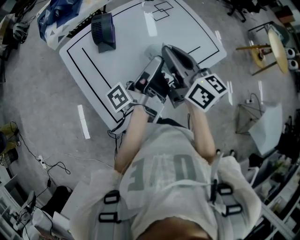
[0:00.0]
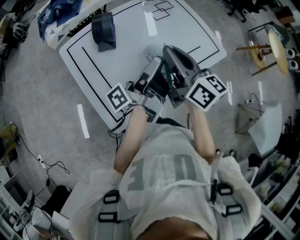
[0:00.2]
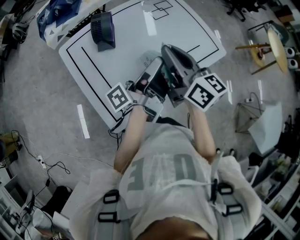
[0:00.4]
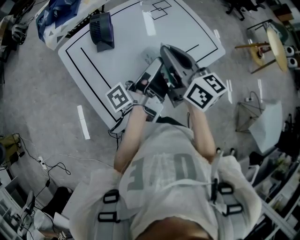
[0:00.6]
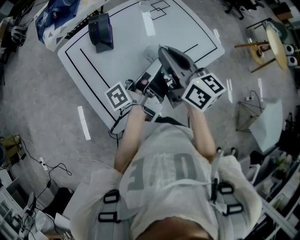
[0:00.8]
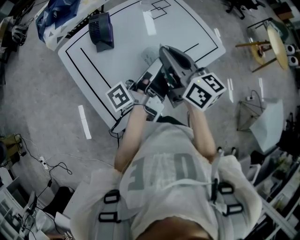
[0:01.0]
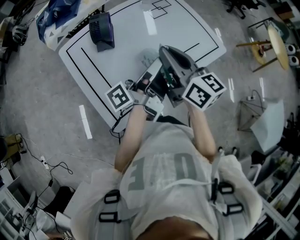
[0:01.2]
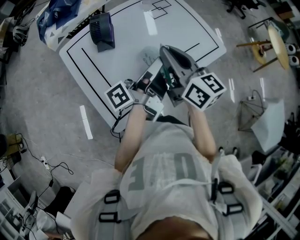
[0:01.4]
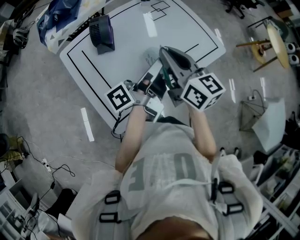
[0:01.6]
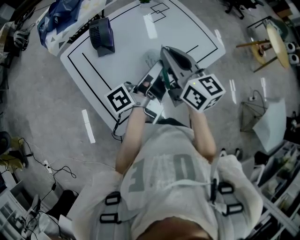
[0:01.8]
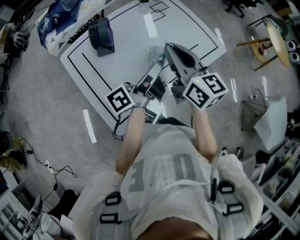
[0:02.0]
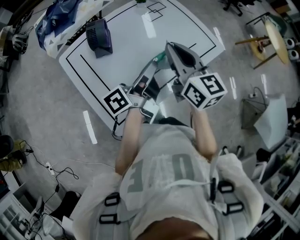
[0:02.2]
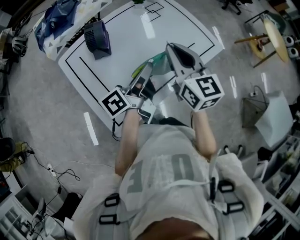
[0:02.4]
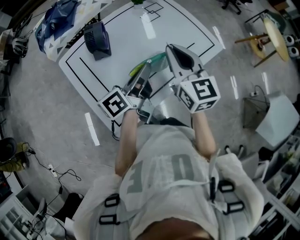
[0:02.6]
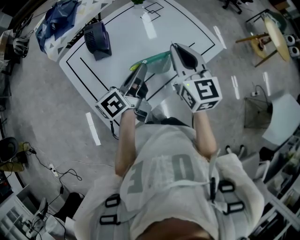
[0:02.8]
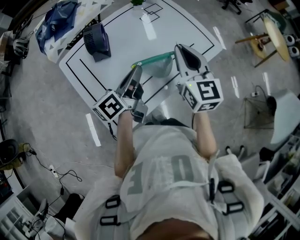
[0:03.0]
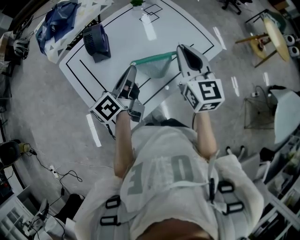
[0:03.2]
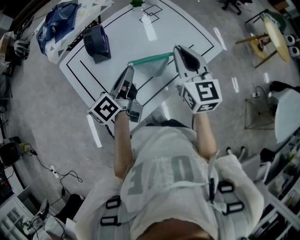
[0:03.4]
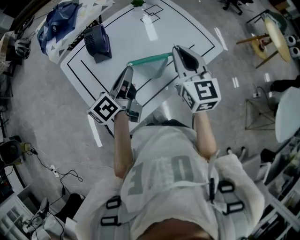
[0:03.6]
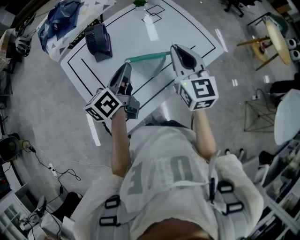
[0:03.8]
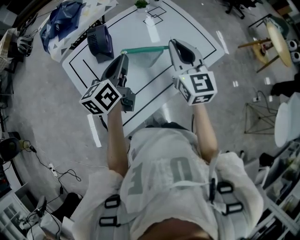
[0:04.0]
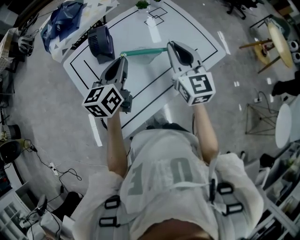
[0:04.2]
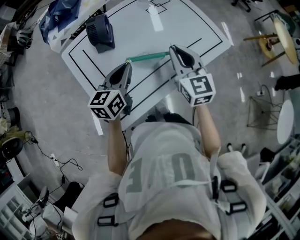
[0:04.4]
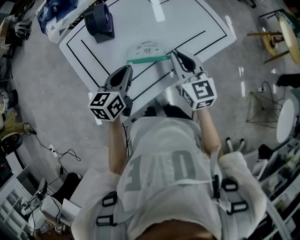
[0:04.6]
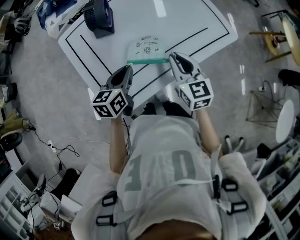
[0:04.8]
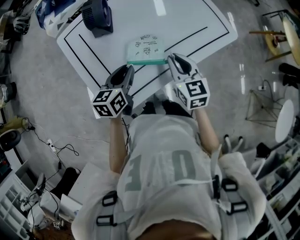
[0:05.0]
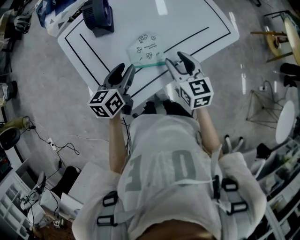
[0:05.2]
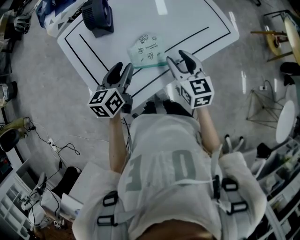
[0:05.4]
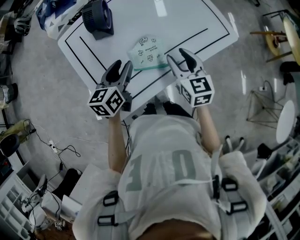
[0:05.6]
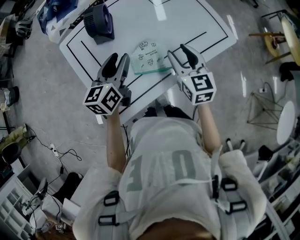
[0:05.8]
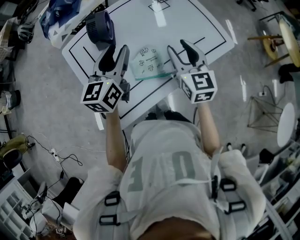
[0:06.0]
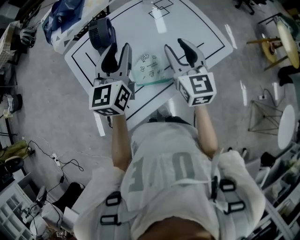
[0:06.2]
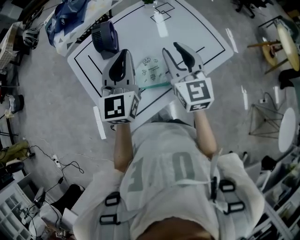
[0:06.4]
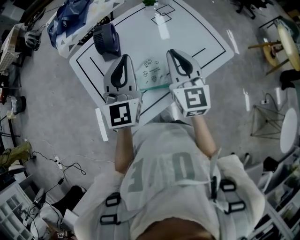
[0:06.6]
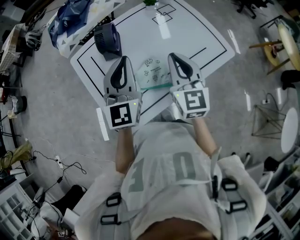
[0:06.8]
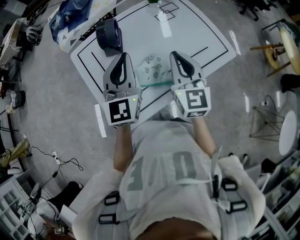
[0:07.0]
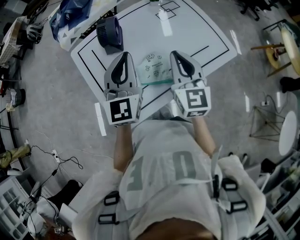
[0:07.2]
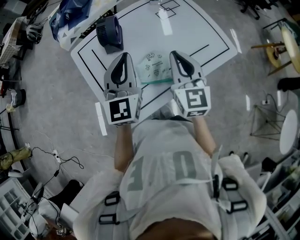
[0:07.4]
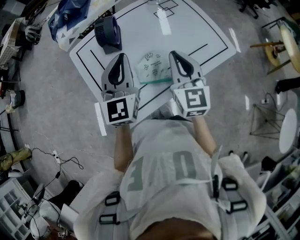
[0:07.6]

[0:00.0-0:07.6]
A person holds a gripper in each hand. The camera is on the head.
0.0 to 1.6 s: The grippers move only a little.
1.6 to 3.0 s: The left gripper moves roughly 5 cm, and swivels about 30 degrees; the right gripper goes approximately 10 cm to the right, and swivels roughly 30 degrees.
3.0 to 4.6 s: The grippers both shift downward by some 10 cm. The left gripper rotates roughly 40 degrees.
4.6 to 6.0 s: The left gripper shifts about 15 cm upward and forward, and opens up; the right gripper is displaced forward by approximately 5 cm, moves approximately 5 cm downward and comes back, and opens.
6.0 to 7.6 s: The right gripper changes place by some 5 cm, and closes its fingers; the left gripper swivels approximately 30 degrees, and closes up.

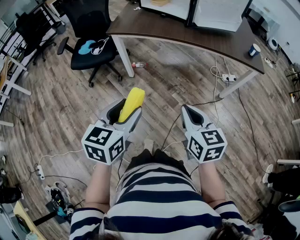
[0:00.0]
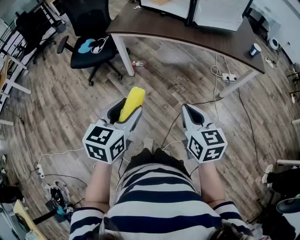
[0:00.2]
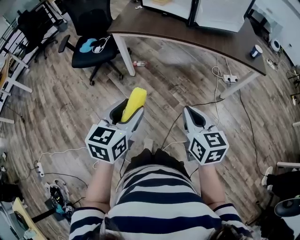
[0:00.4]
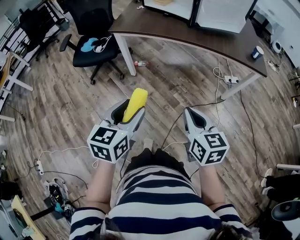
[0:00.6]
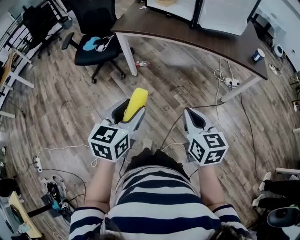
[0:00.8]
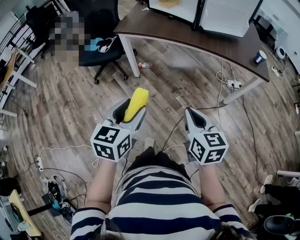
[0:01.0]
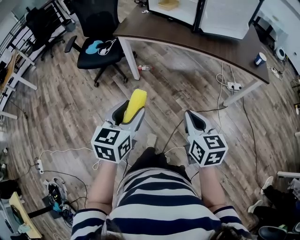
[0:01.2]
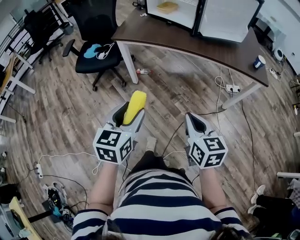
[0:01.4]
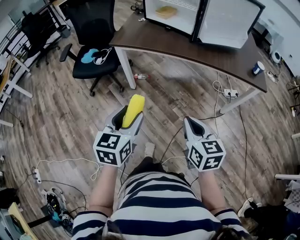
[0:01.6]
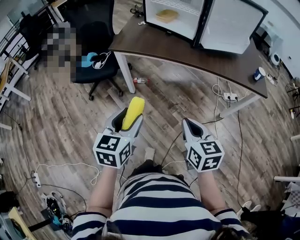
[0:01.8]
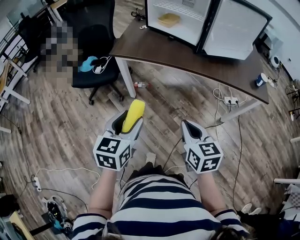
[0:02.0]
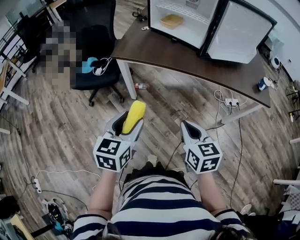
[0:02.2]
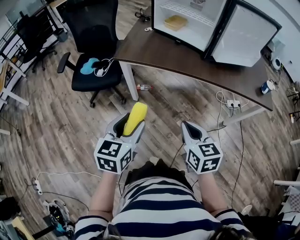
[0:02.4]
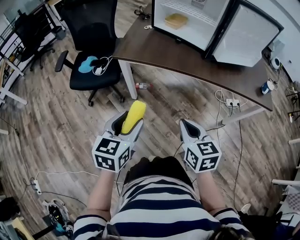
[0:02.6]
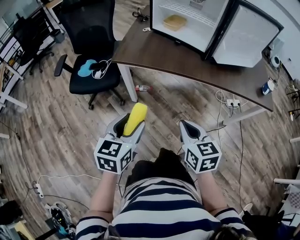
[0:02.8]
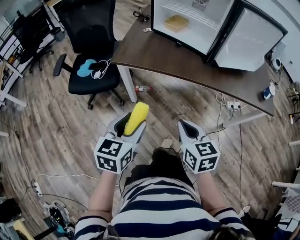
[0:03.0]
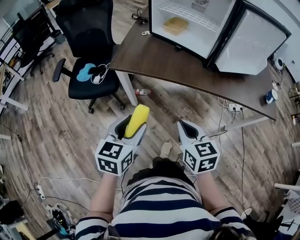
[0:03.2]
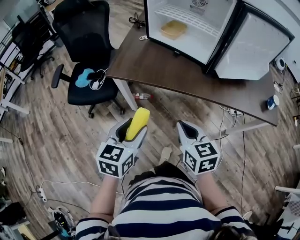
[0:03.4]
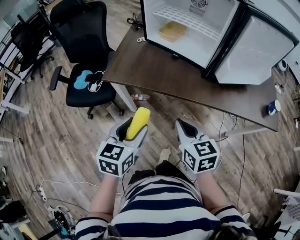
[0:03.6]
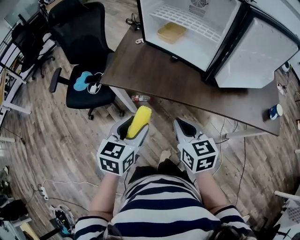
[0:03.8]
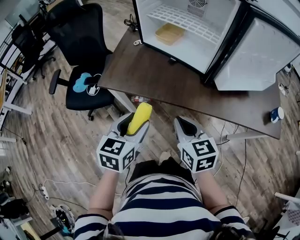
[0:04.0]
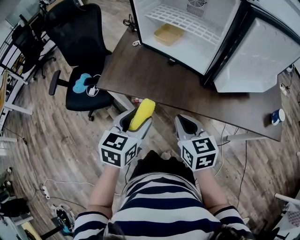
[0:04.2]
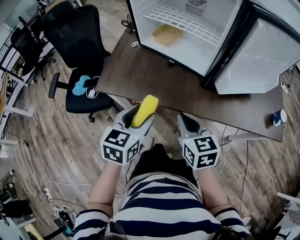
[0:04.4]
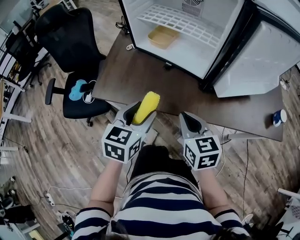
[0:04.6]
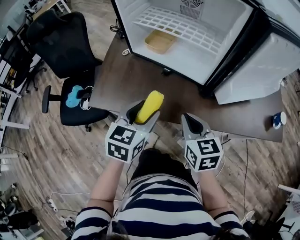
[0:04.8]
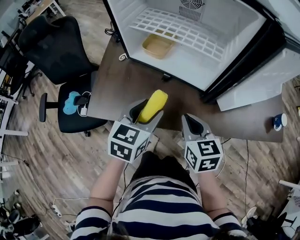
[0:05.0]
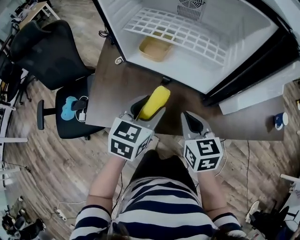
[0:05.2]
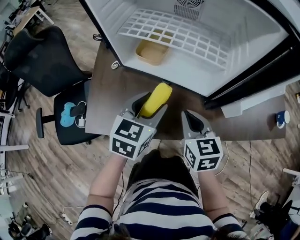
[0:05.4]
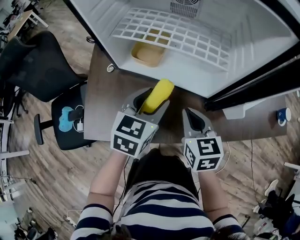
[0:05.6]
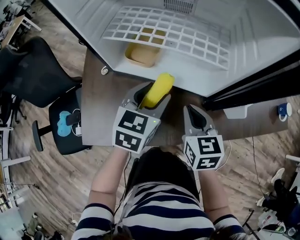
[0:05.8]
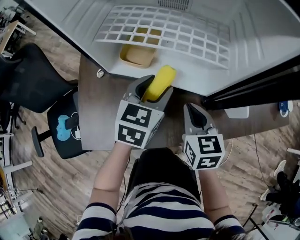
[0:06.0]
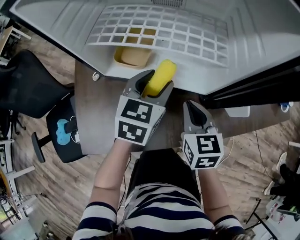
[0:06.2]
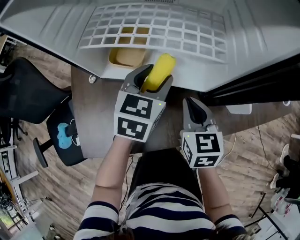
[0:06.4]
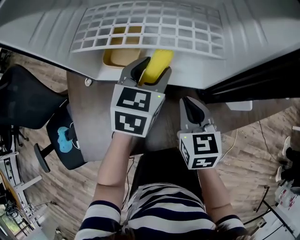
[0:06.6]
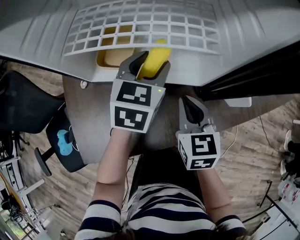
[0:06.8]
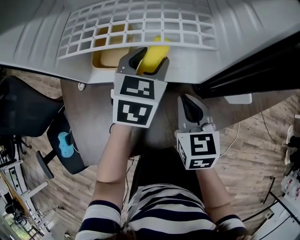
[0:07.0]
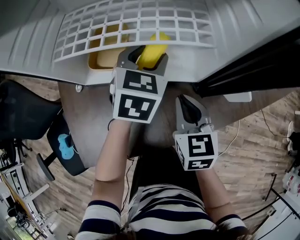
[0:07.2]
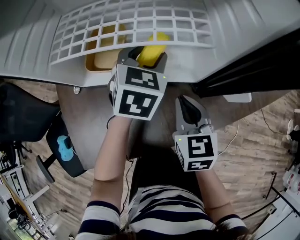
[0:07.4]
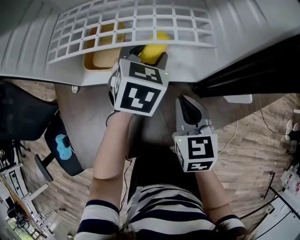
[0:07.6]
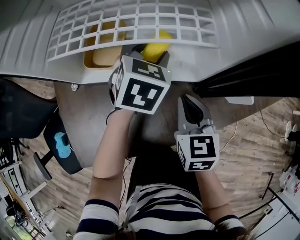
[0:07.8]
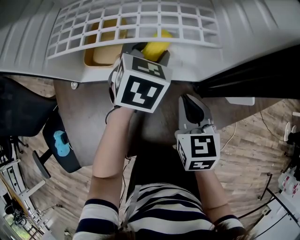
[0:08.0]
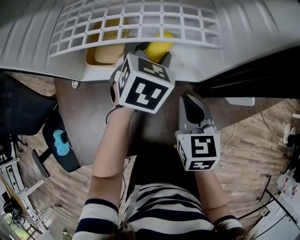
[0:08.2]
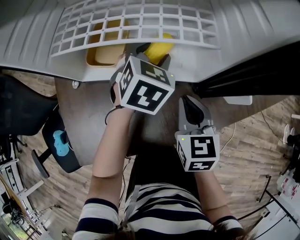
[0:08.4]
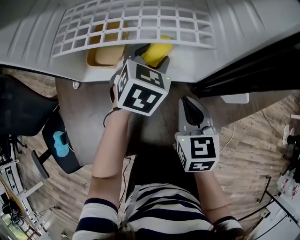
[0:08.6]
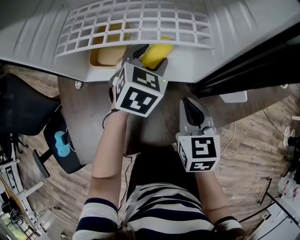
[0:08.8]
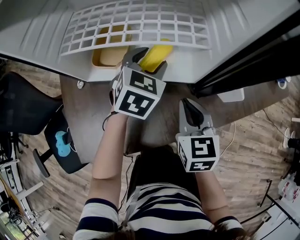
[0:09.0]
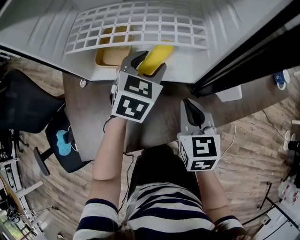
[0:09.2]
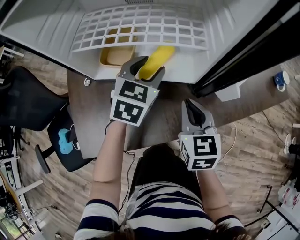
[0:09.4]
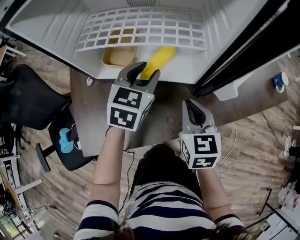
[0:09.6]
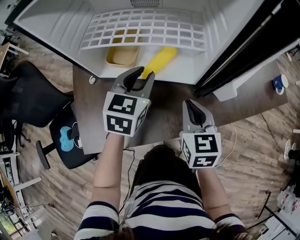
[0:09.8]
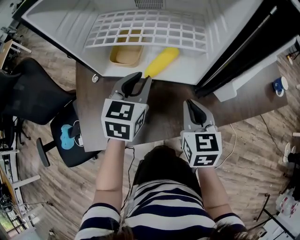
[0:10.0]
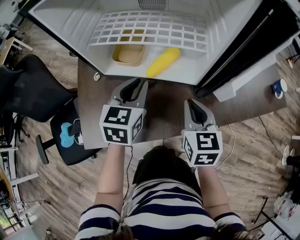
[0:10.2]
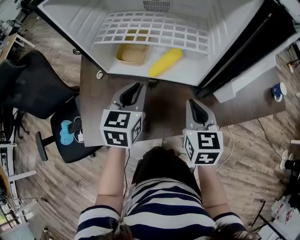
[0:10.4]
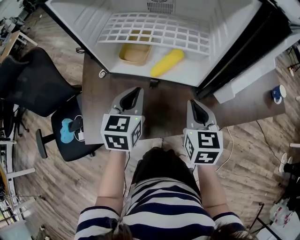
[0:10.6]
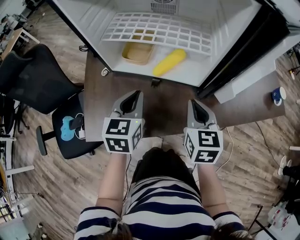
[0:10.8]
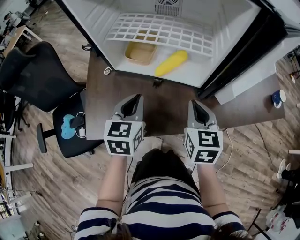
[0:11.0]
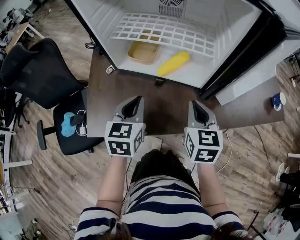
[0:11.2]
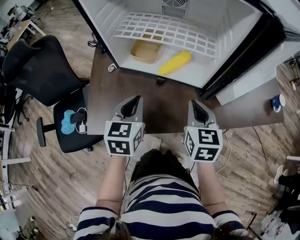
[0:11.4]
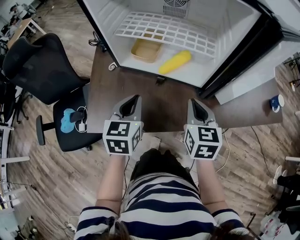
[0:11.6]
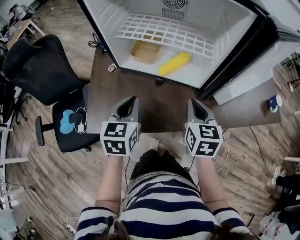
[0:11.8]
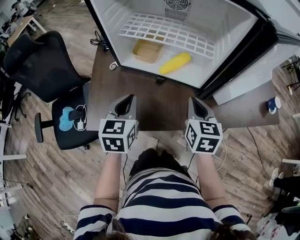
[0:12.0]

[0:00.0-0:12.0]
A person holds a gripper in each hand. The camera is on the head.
0.0 to 1.6 s: The grippers both shift forward by roughly 5 cm.
1.6 to 3.0 s: The right gripper is displaced forward and to the left by some 25 cm, while the left gripper shifts some 20 cm forward.
3.0 to 4.4 s: The right gripper travels forward by approximately 25 cm, while the left gripper is displaced forward and to the right by about 30 cm.
4.4 to 6.0 s: The grippers both shift forward by approximately 30 cm. The right gripper swivels roughly 30 degrees, while the left gripper swivels about 20 degrees.
6.0 to 7.6 s: The left gripper moves forward and to the right, roughly 10 cm.
7.6 to 9.0 s: The grippers make only small movements.
9.0 to 10.4 s: The right gripper shifts some 5 cm upward. Meanwhile the left gripper travels backward and to the left by about 15 cm, and rotates about 30 degrees.
10.4 to 12.0 s: The left gripper goes approximately 10 cm backward and to the left.

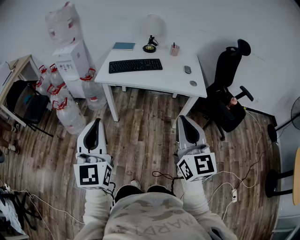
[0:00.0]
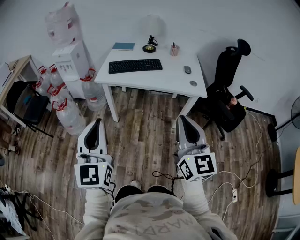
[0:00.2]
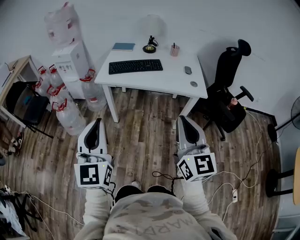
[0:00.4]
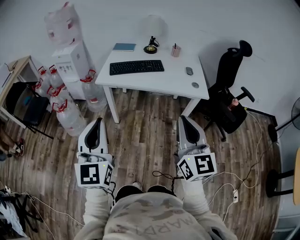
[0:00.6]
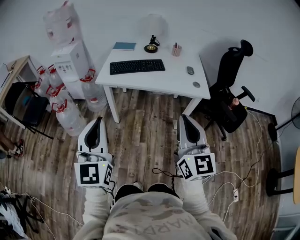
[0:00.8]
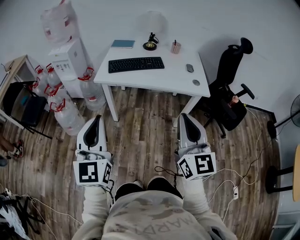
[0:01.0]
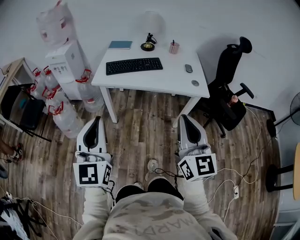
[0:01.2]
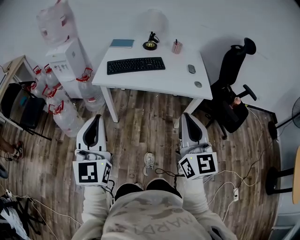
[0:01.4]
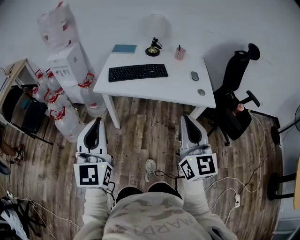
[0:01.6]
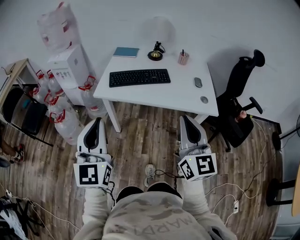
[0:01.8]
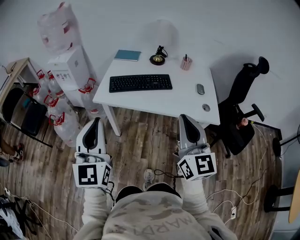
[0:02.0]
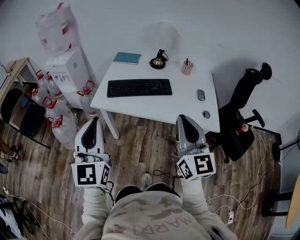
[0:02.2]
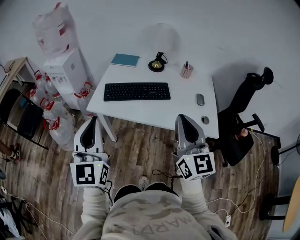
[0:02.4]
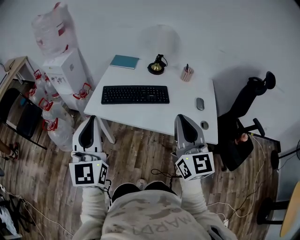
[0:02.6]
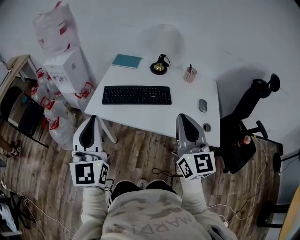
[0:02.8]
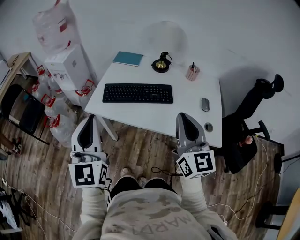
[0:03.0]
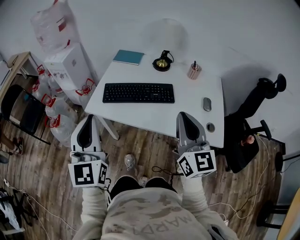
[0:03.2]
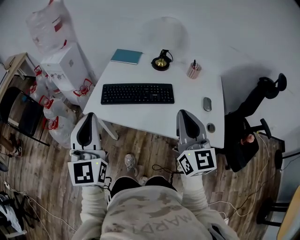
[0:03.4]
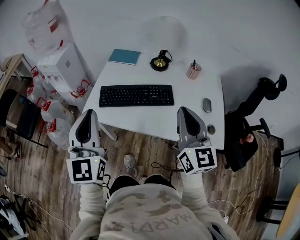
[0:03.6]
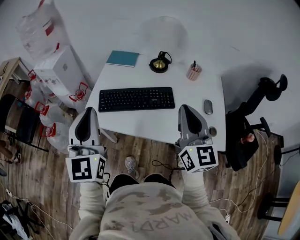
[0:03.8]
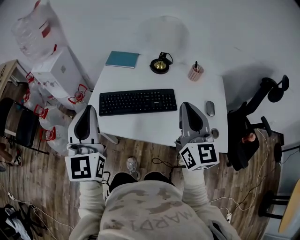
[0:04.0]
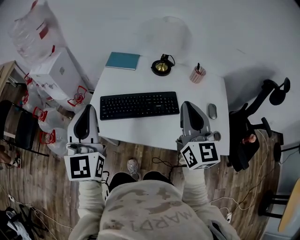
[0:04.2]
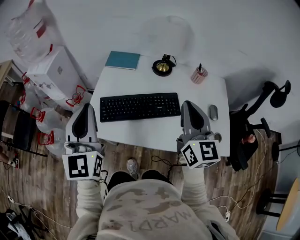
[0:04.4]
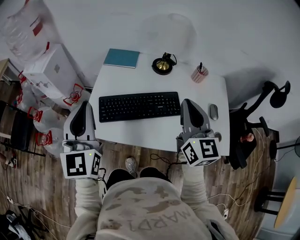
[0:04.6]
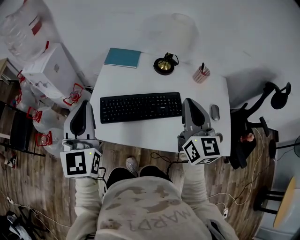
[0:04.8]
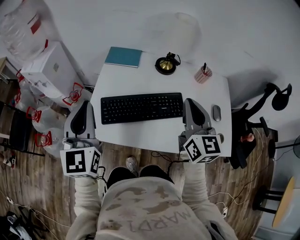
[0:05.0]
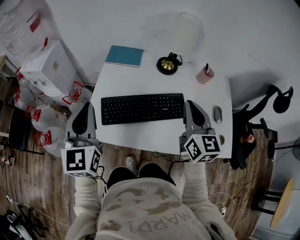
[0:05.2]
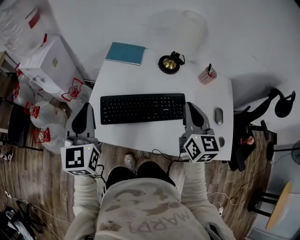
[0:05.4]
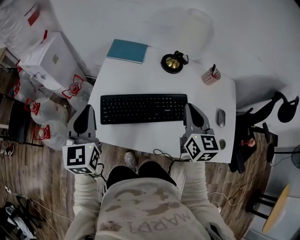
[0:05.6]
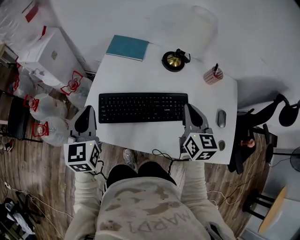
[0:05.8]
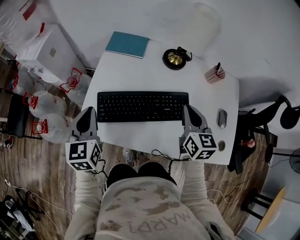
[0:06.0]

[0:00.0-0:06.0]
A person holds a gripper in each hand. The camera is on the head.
0.0 to 1.6 s: Both grippers travel together forward, roughly 15 cm.
1.6 to 3.0 s: The grippers both shift forward by approximately 25 cm.
3.0 to 4.4 s: Both grippers travel together forward, about 20 cm.
4.4 to 6.0 s: Both grippers move downward and forward, approximately 20 cm. The left gripper rotates roughly 30 degrees; the right gripper turns by about 20 degrees.
